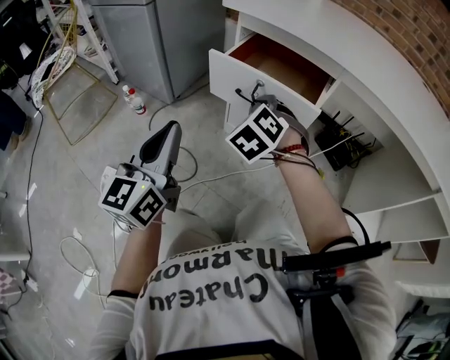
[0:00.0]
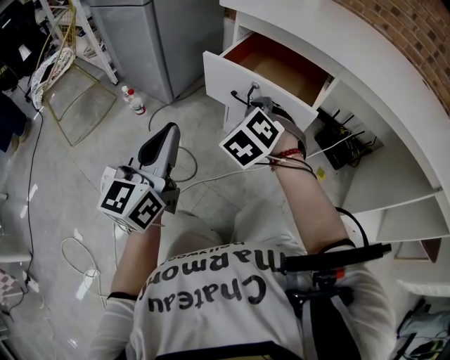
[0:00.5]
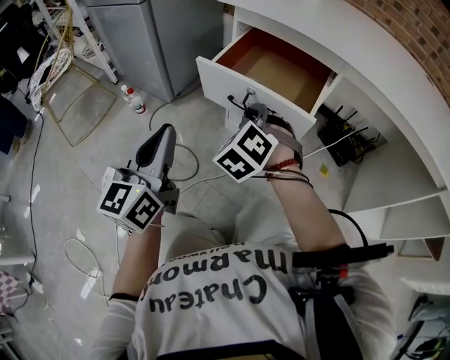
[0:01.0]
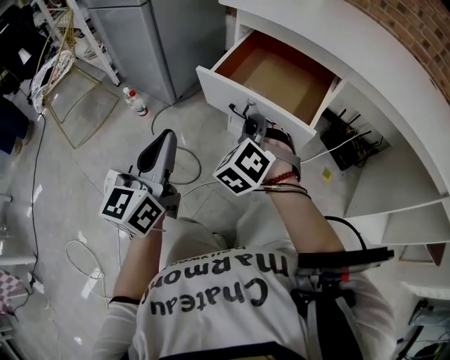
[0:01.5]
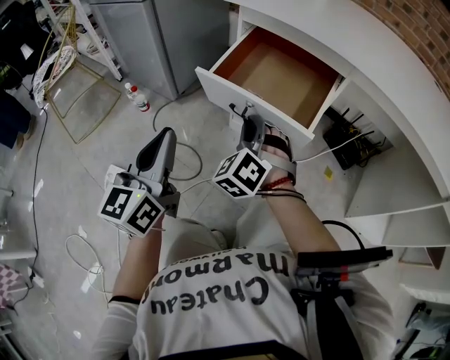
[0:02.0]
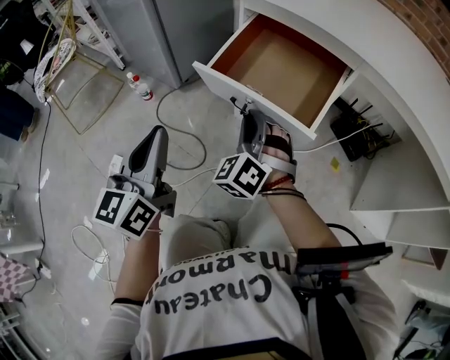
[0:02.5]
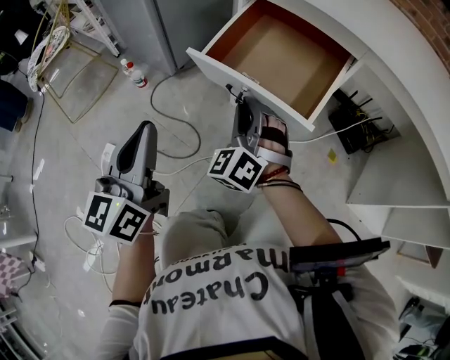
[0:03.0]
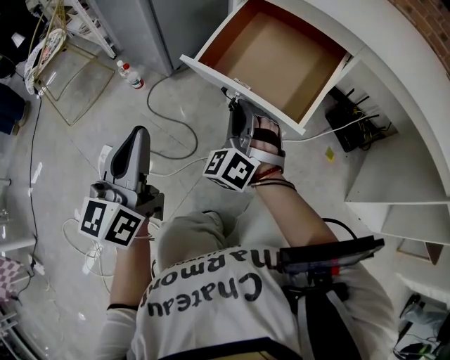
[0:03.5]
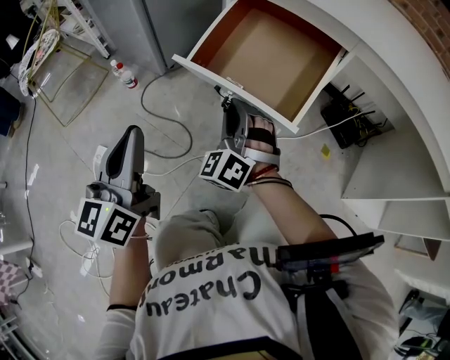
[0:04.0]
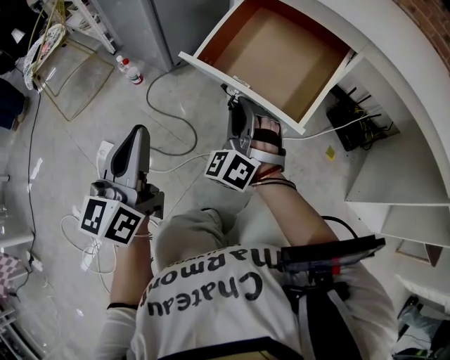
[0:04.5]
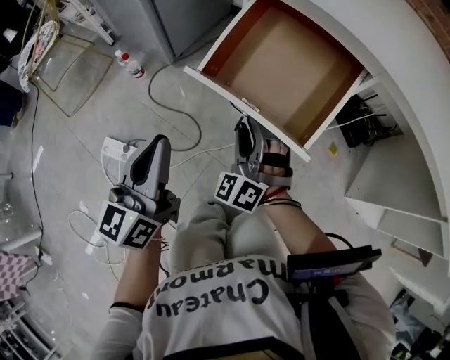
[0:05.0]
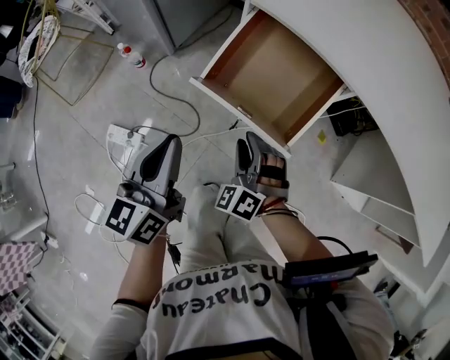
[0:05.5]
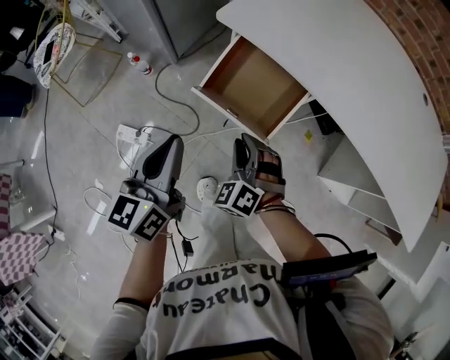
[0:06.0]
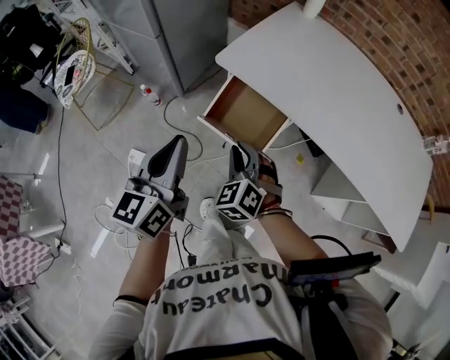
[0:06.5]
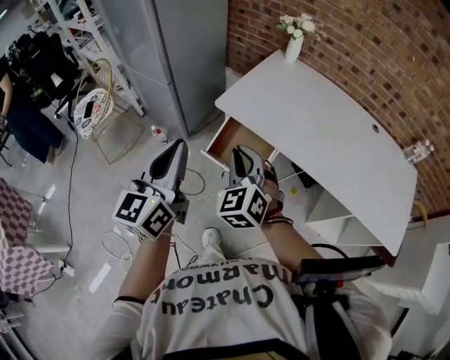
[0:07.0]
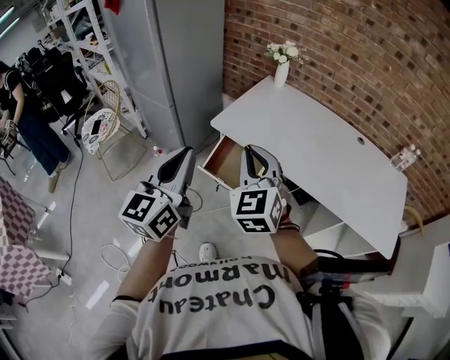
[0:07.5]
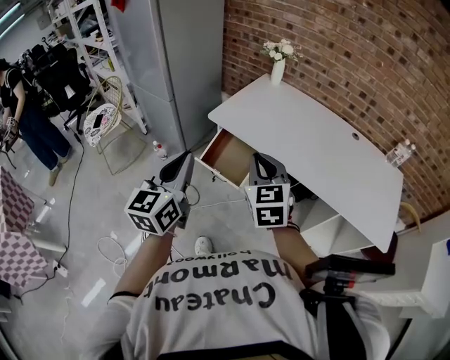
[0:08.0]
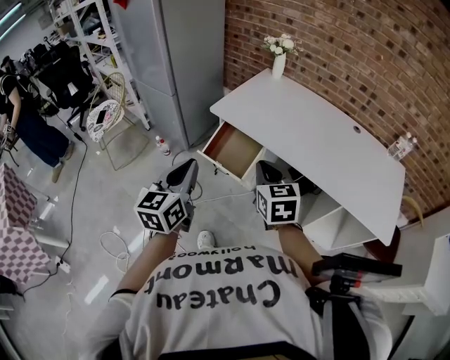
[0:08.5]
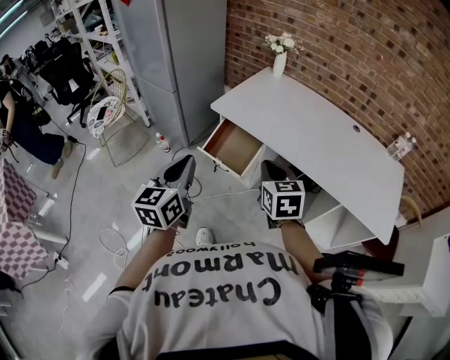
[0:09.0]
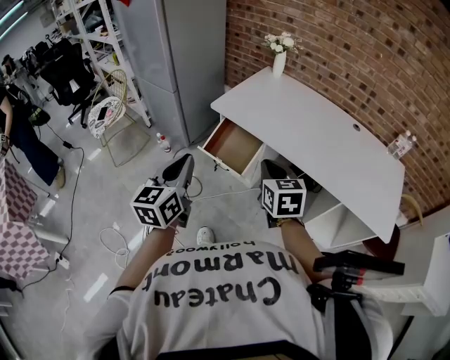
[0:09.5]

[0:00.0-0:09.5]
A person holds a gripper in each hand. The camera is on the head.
0:00.0 to 0:02.0: The right gripper shifts by some 5 cm.
0:02.0 to 0:04.0: The grippers move only a little.
0:04.0 to 0:05.5: The left gripper moves upward, roughly 5 cm. The right gripper travels backward by some 5 cm, and opens.
0:05.5 to 0:07.5: The grippers both shift upward by roughly 50 cm. The left gripper changes its angle by roughly 20 degrees. Meanwhile the right gripper rotates about 40 degrees, and closes.
0:07.5 to 0:09.5: The left gripper shifts roughly 15 cm downward and backward, while the right gripper moves downward, to the right and backward, approximately 15 cm, and rotates about 30 degrees.

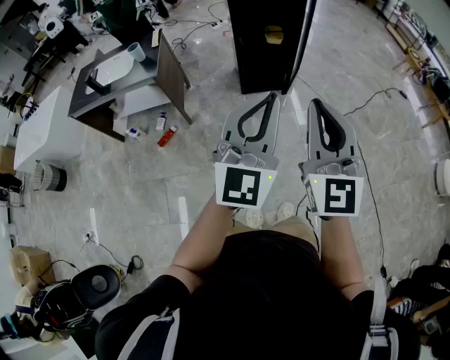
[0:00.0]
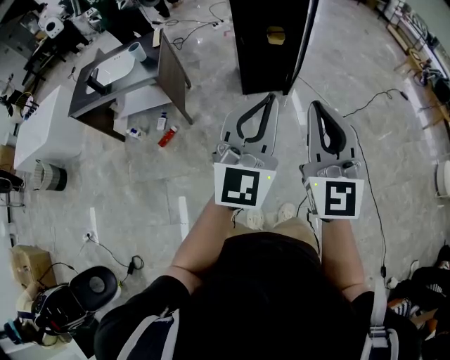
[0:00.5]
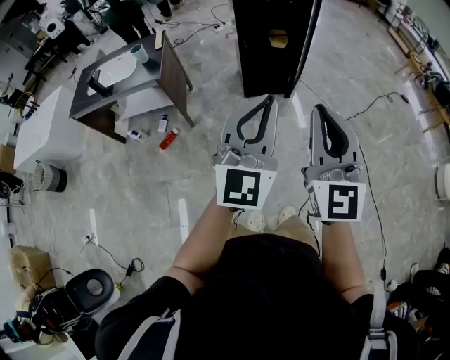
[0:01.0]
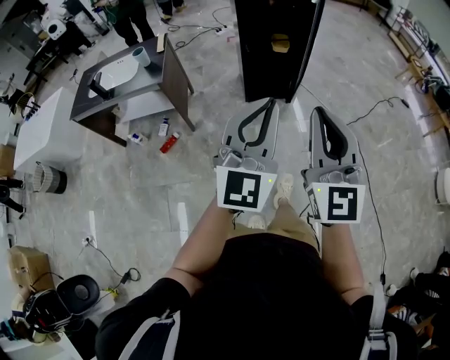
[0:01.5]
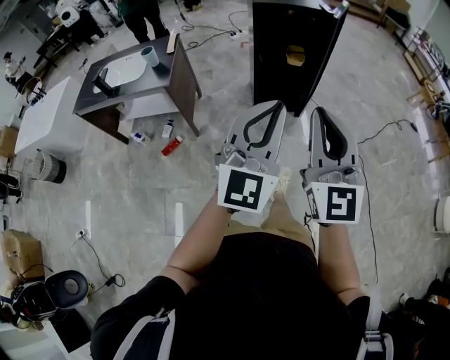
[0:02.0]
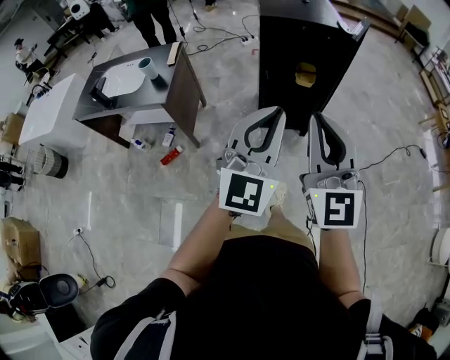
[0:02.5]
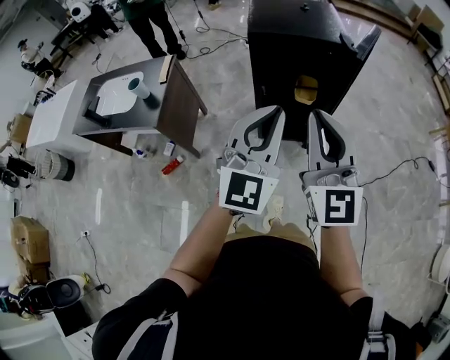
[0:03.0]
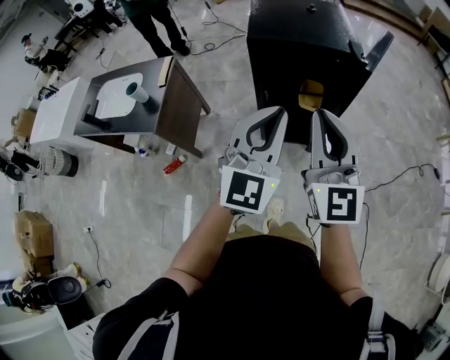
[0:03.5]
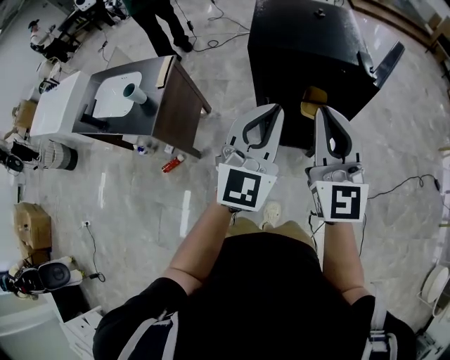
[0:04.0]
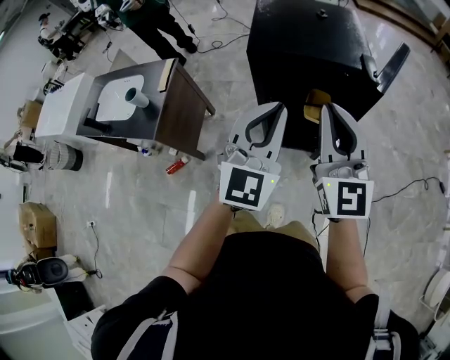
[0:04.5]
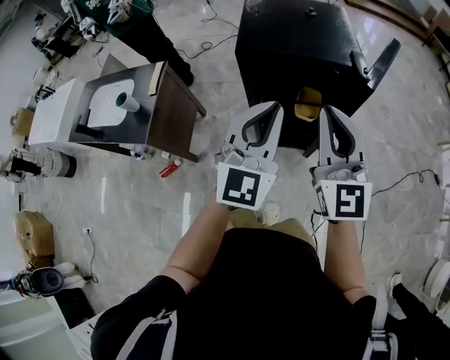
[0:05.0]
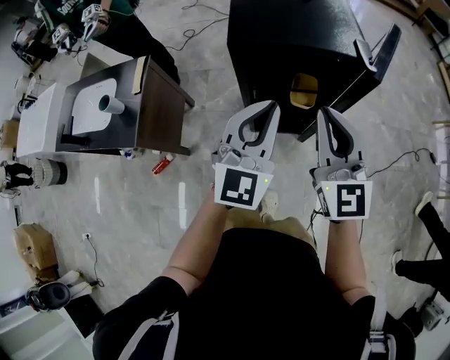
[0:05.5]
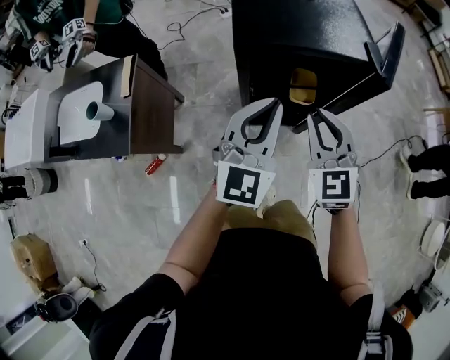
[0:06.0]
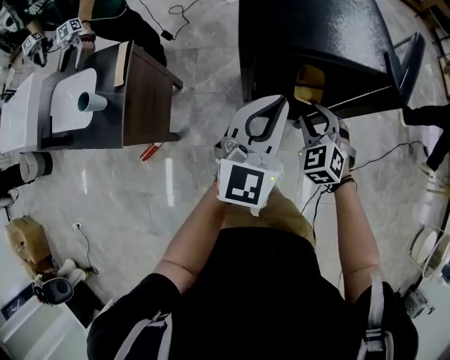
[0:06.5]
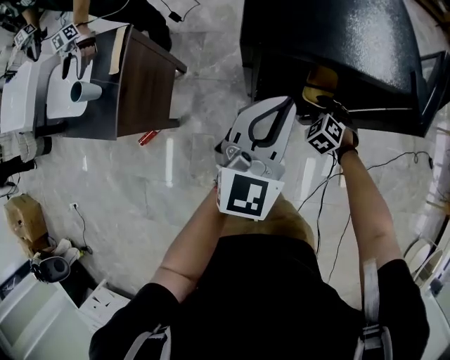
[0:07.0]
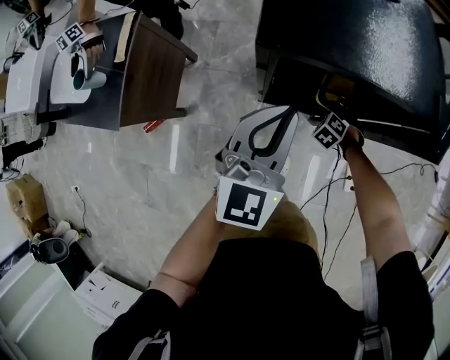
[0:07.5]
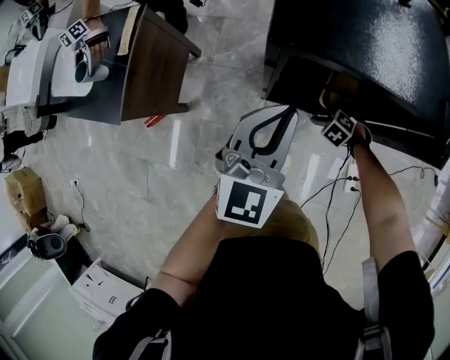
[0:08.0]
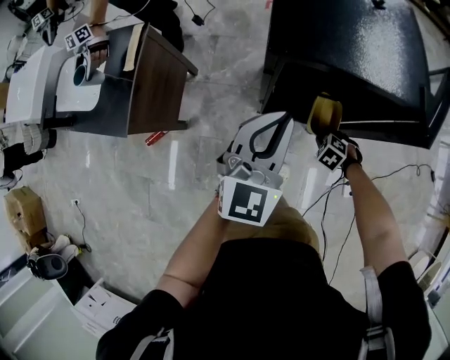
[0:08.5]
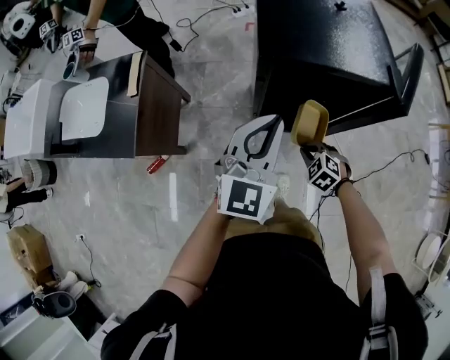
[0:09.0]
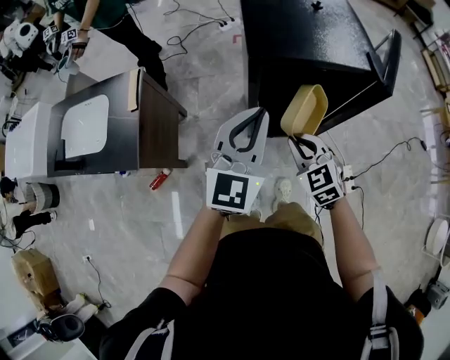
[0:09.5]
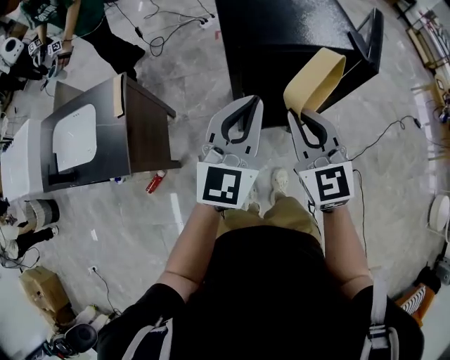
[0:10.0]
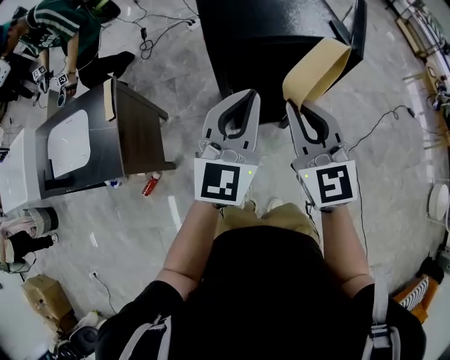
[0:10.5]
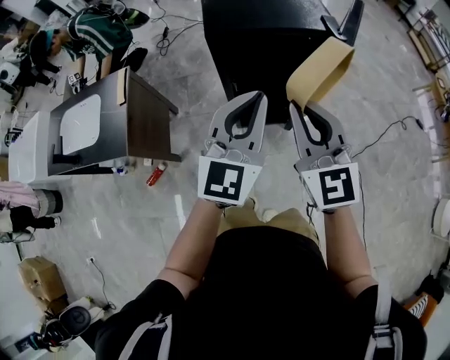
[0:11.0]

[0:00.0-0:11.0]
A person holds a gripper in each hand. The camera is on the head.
0:00.0 to 0:02.0: Both grippers move forward and to the left, some 15 cm.
0:02.0 to 0:03.5: The pair of grippers is taken forward, approximately 50 cm.
0:03.5 to 0:05.5: The right gripper is displaced forward and downward by approximately 15 cm; the left gripper shifts roughly 15 cm forward.
0:05.5 to 0:07.5: The left gripper shifts approximately 20 cm forward and downward. The right gripper heads downward and forward, covering approximately 50 cm, angles its fingers downward, by roughly 70 degrees, and opens up.
0:07.5 to 0:09.0: The right gripper shifts by about 25 cm, and closes its fingers. The left gripper shifts by some 15 cm.
0:09.0 to 0:11.0: The right gripper is displaced upward by some 40 cm, and tilts its fingers approximately 60 degrees upward. The left gripper shifts roughly 20 cm backward, upward and to the right.

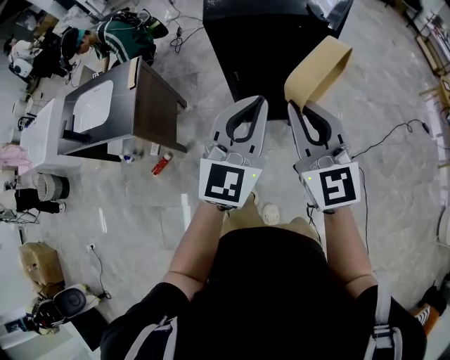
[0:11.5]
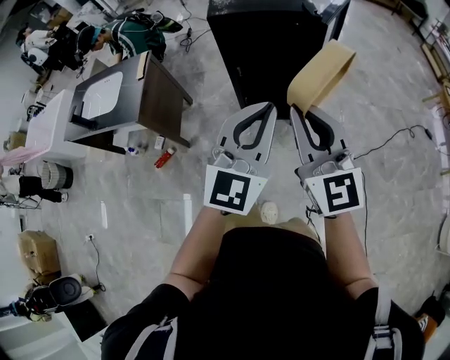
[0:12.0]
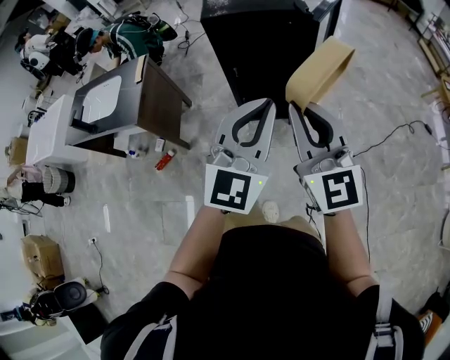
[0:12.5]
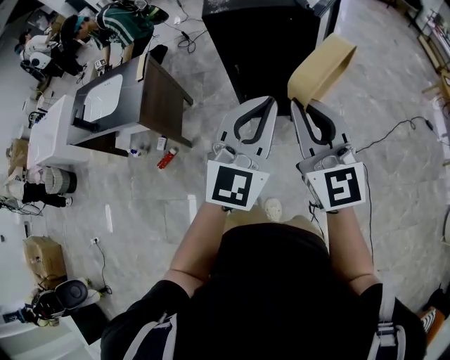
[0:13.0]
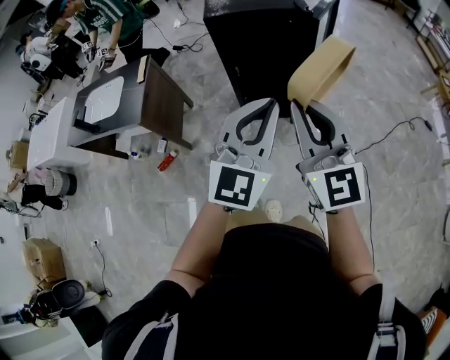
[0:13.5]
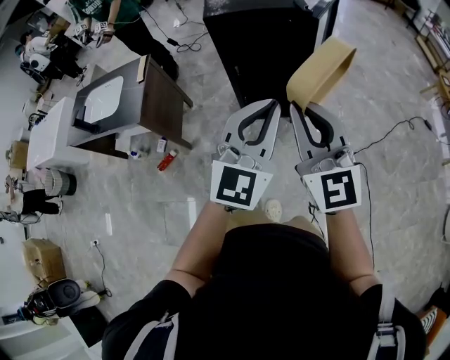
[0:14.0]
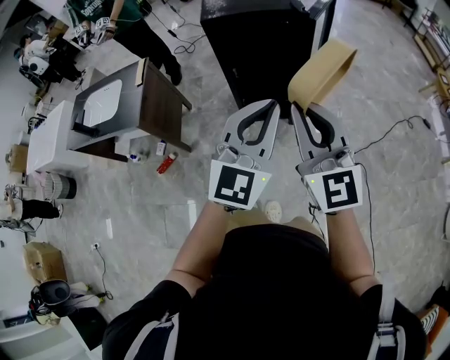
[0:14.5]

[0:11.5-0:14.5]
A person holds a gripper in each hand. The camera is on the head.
0:11.5 to 0:13.0: The left gripper goes roughly 15 cm backward and to the right; the right gripper travels backward by about 10 cm.
0:13.0 to 0:14.5: The grippers make only small movements.

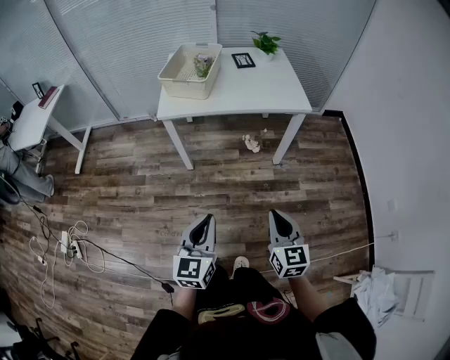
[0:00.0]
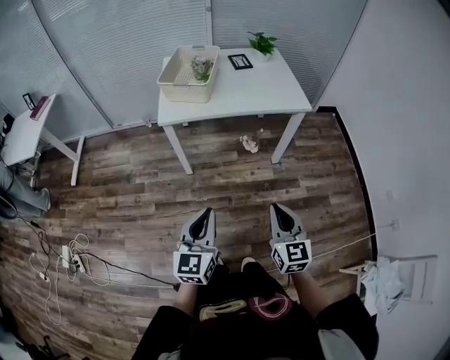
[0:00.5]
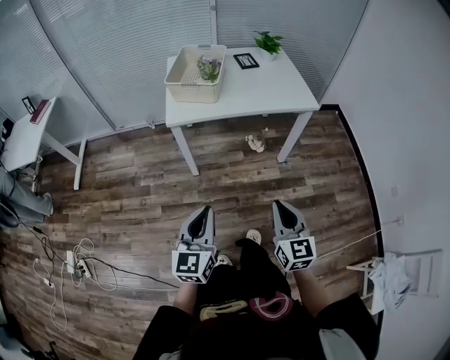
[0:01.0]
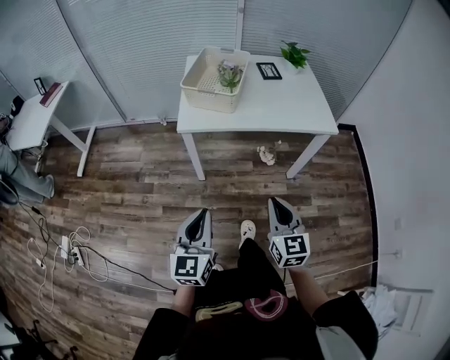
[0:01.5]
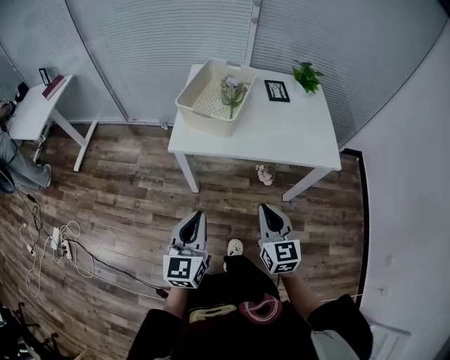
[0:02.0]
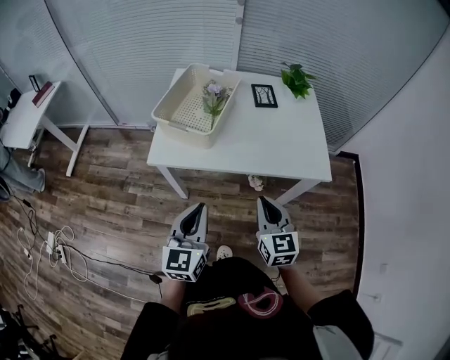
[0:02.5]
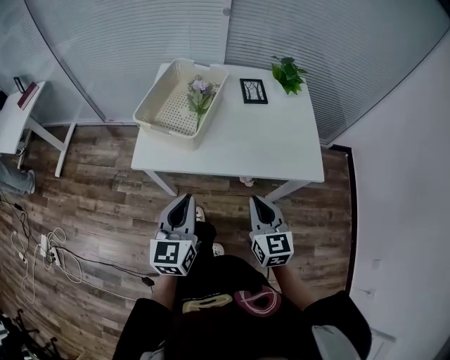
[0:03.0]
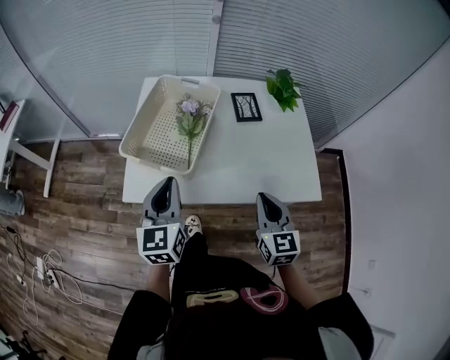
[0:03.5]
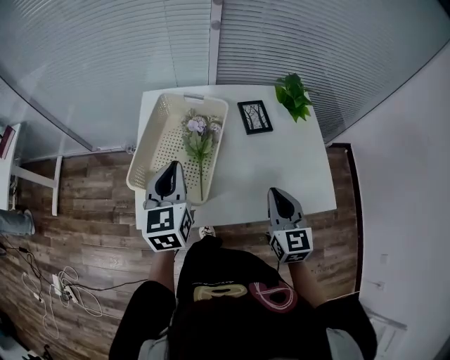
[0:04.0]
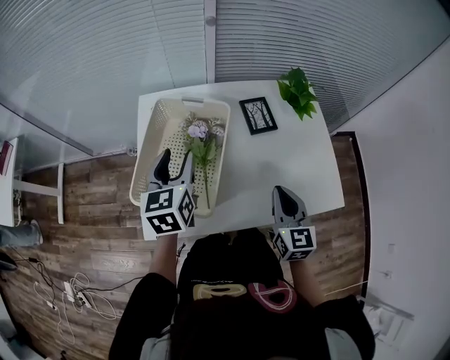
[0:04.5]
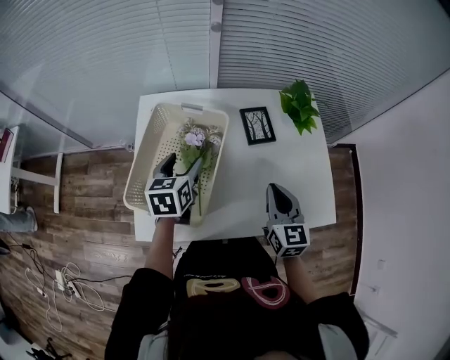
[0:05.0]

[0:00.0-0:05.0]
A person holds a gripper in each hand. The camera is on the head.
0:00.0 to 0:02.5: The two grippers go roughly 35 cm forward.
0:02.5 to 0:05.0: Both grippers move forward, some 40 cm. The left gripper changes its angle by approximately 30 degrees, and opens up.
